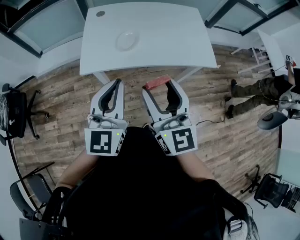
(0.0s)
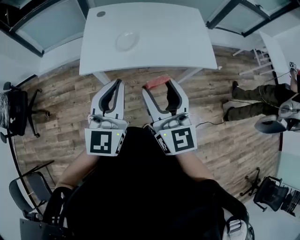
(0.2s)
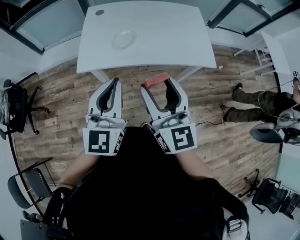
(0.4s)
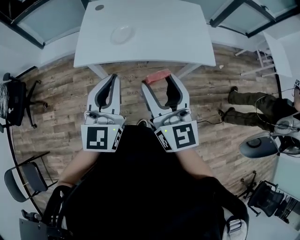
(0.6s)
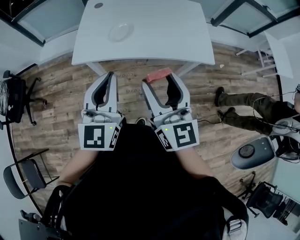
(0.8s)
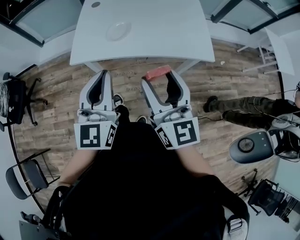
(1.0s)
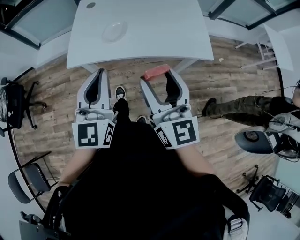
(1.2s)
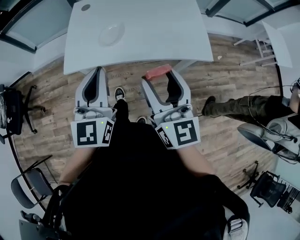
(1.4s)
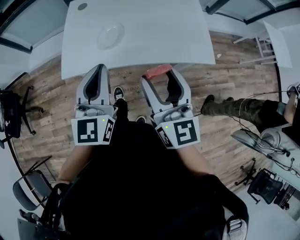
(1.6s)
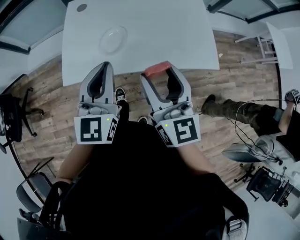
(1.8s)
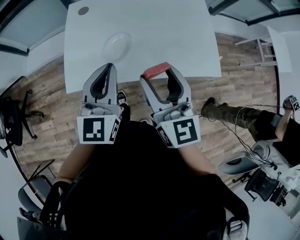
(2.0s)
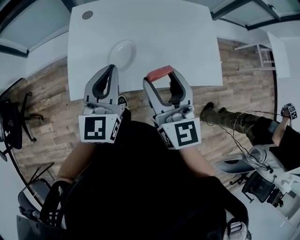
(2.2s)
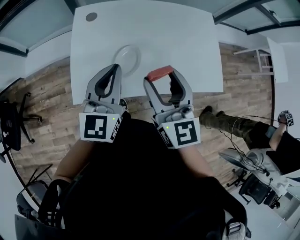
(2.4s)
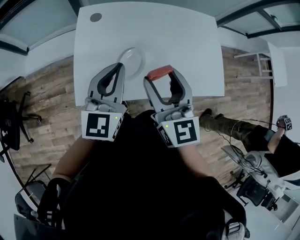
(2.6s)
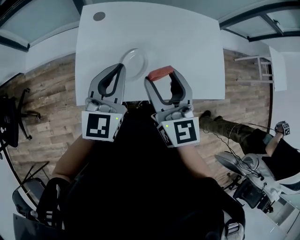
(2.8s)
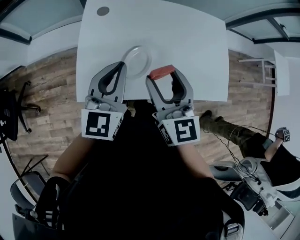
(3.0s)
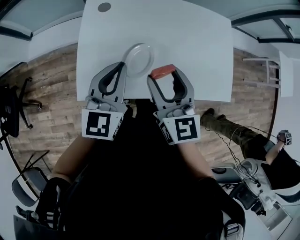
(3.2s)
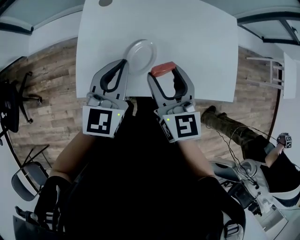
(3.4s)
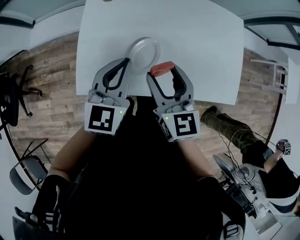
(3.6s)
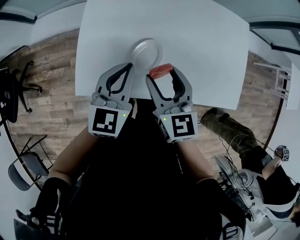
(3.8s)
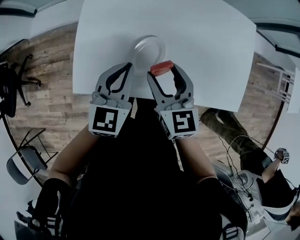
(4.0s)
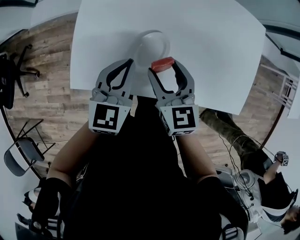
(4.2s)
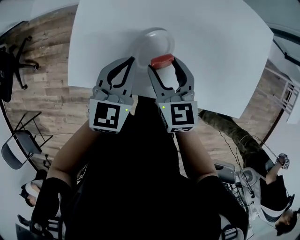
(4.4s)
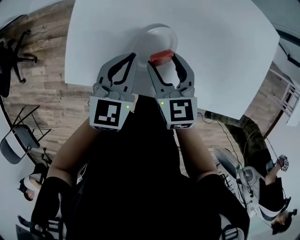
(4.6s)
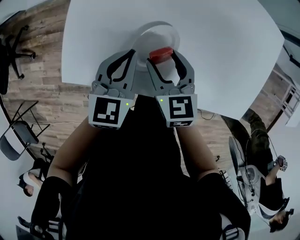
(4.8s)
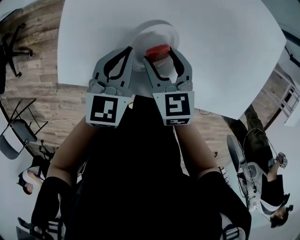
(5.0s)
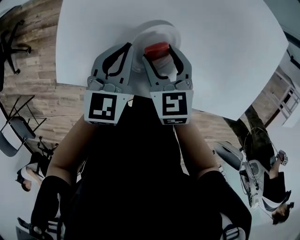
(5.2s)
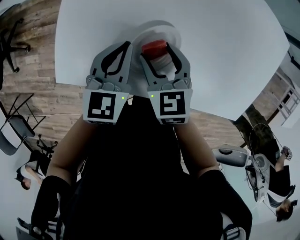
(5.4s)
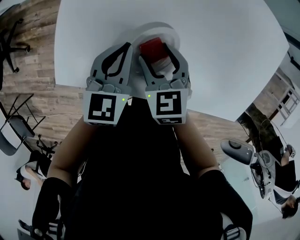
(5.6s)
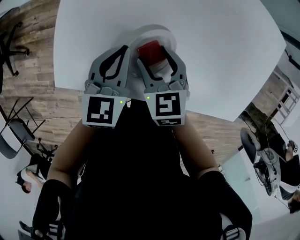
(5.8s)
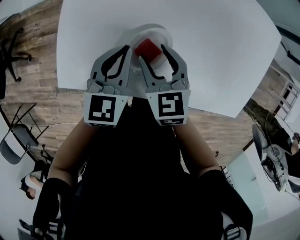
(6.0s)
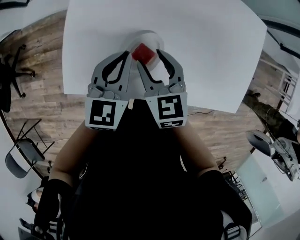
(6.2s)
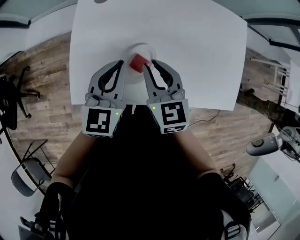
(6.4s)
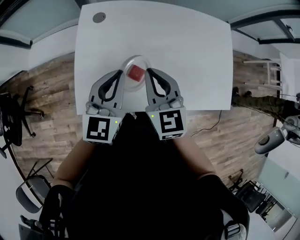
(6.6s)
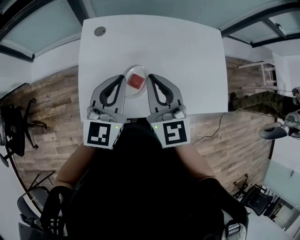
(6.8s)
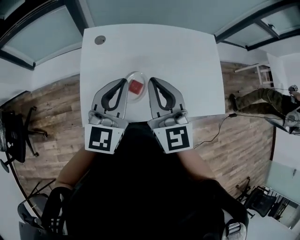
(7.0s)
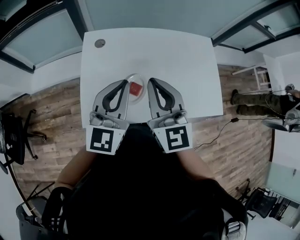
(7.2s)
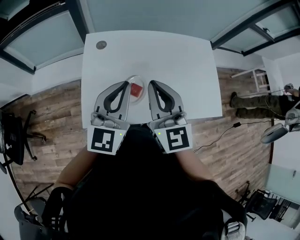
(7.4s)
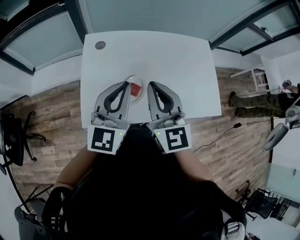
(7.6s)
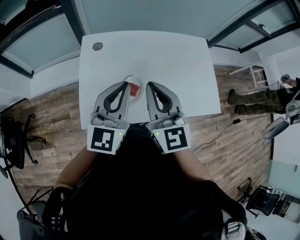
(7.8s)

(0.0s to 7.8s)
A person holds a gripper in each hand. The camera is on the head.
0.0s - 1.6s: The right gripper moves forward and to the right, about 10 cm, while the left gripper is displaced forward by roughly 10 cm.
1.6s - 3.2s: The left gripper moves forward, roughly 20 cm, while the right gripper goes some 20 cm forward and to the left.
3.2s - 4.6s: The grippers both shift downward by some 15 cm. The left gripper changes its angle by roughly 20 degrees; the right gripper swivels about 30 degrees.
4.6s - 6.2s: There are only small adjustments of the grippers.
6.2s - 7.8s: The two grippers go about 20 cm upward. The left gripper rotates some 30 degrees; the right gripper tips its fingers upward by some 30 degrees, and closes up.

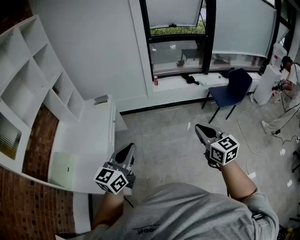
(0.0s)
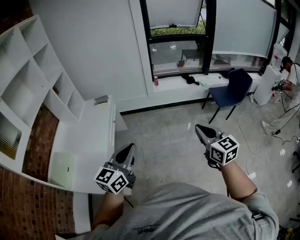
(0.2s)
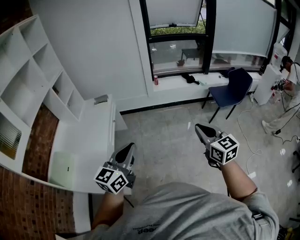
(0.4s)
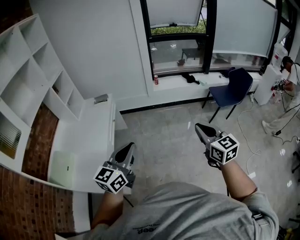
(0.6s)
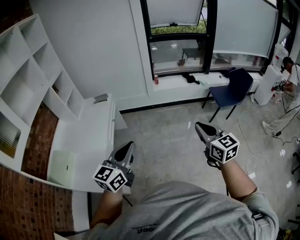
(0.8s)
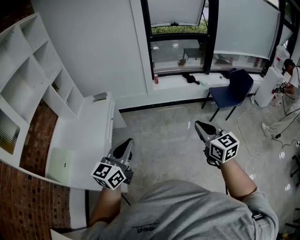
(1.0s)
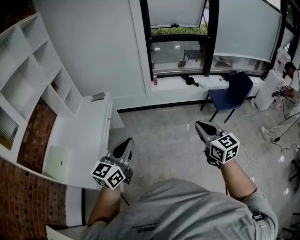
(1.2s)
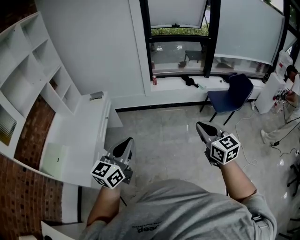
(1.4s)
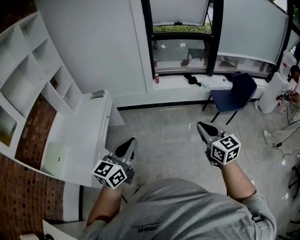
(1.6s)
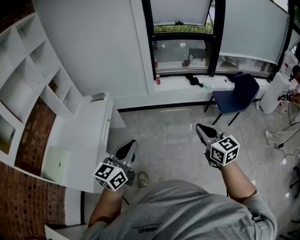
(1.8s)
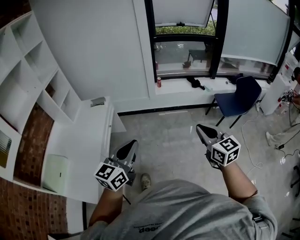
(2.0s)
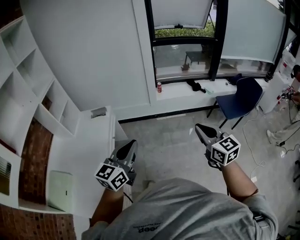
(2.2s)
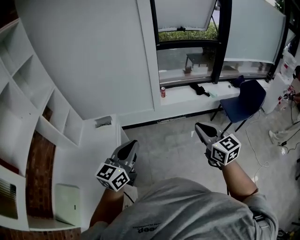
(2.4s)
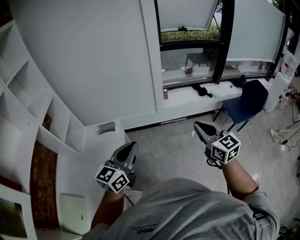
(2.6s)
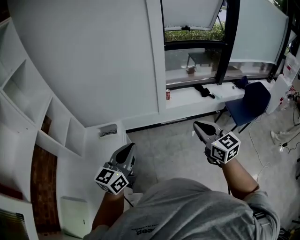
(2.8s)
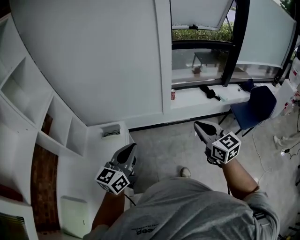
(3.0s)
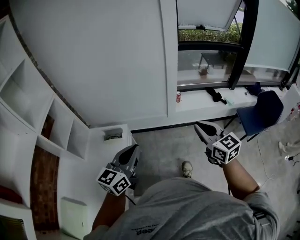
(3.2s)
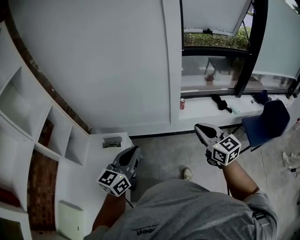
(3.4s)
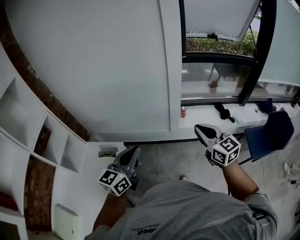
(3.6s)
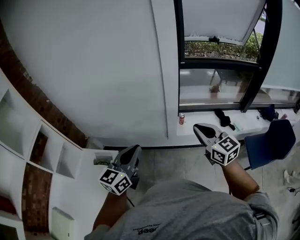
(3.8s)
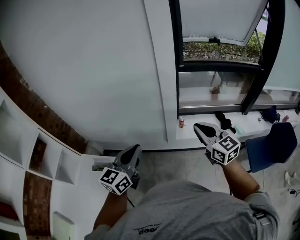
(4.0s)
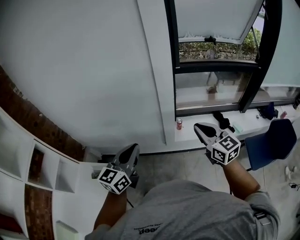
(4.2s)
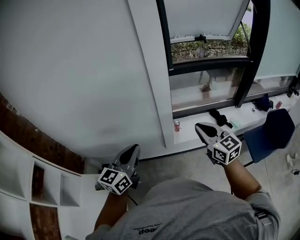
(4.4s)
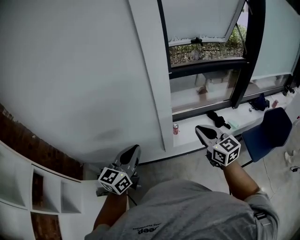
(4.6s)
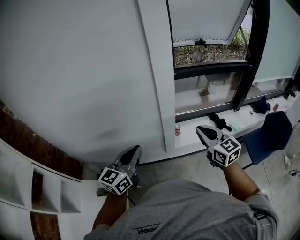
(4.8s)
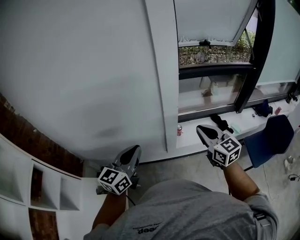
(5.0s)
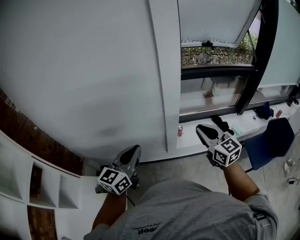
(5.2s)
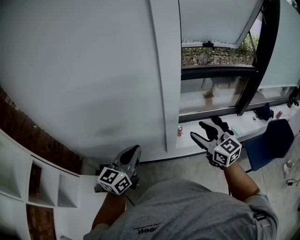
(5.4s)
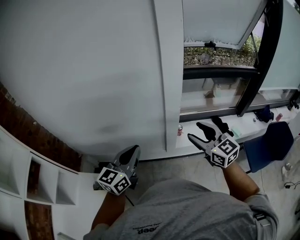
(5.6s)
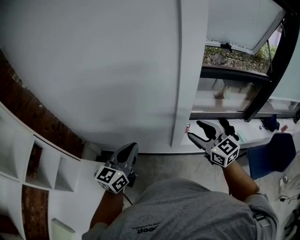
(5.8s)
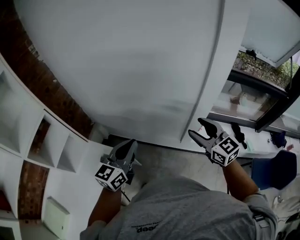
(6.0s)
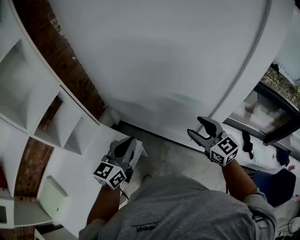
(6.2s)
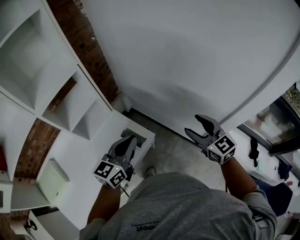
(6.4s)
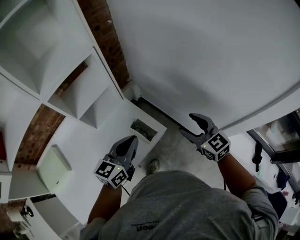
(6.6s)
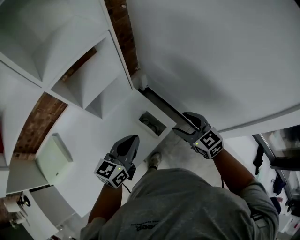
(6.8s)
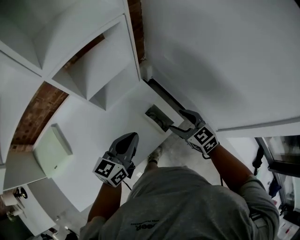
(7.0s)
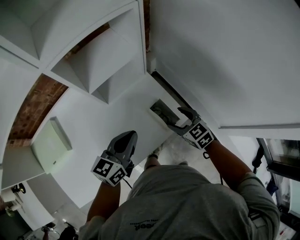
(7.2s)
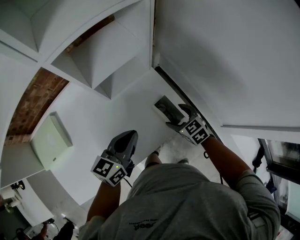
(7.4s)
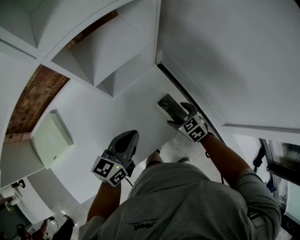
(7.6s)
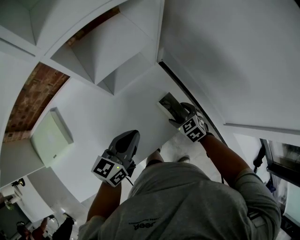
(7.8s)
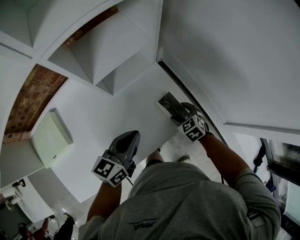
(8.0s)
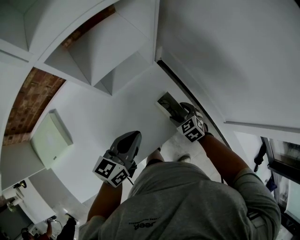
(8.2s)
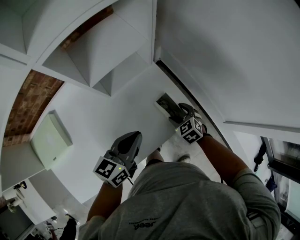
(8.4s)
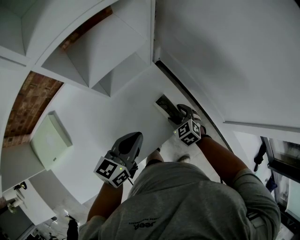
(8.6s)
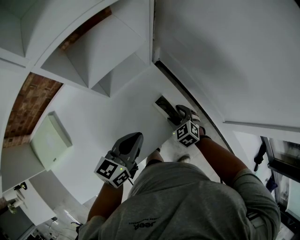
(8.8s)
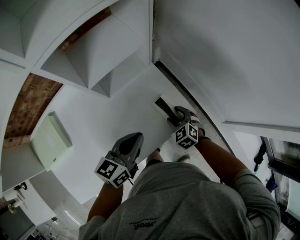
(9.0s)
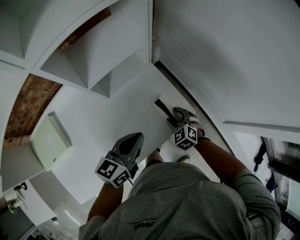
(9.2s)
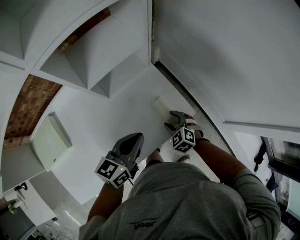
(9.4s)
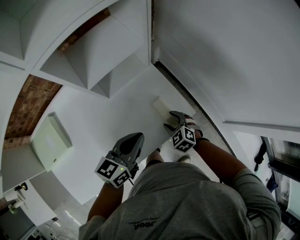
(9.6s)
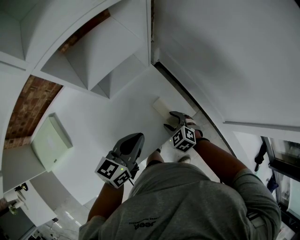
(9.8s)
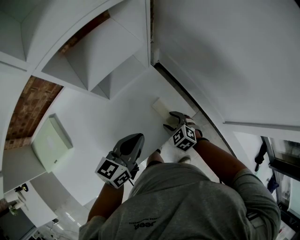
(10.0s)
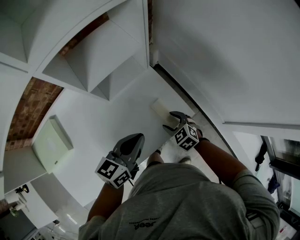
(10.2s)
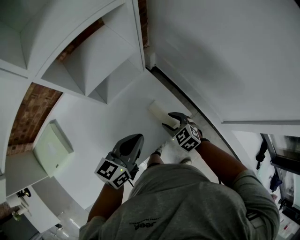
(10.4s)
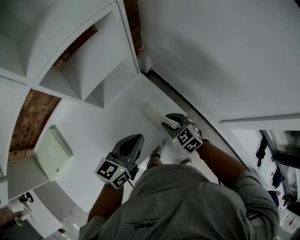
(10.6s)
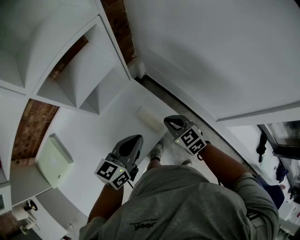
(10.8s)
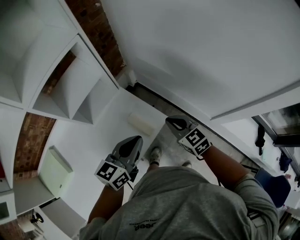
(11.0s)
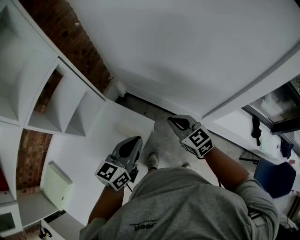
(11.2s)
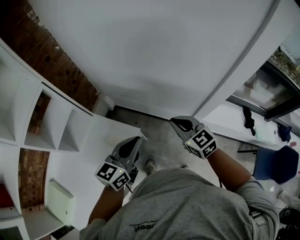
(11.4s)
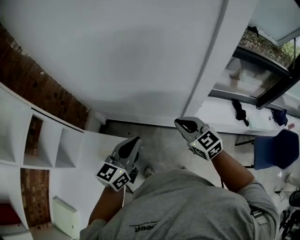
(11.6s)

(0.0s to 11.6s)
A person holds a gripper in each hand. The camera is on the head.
0.0s - 1.4s: Both grippers travel together to the right, approximately 10 cm.
1.4s - 2.8s: The two grippers travel together, forward and to the left, roughly 50 cm.
2.8s - 4.4s: The two grippers travel together, forward, about 50 cm.
4.4s - 5.8s: The two grippers go approximately 10 cm to the left. The right gripper opens its fingers.
5.8s - 7.2s: The two grippers travel together, approximately 50 cm. The left gripper swivels approximately 50 degrees. Meanwhile the right gripper rotates approximately 60 degrees.
7.2s - 8.8s: The right gripper moves downward, about 10 cm, and rotates roughly 20 degrees.
8.8s - 10.2s: The grippers make only small movements.
10.2s - 11.6s: The left gripper shifts by roughly 35 cm, and turns by roughly 40 degrees. The right gripper moves approximately 50 cm, swivels roughly 60 degrees, and closes up.

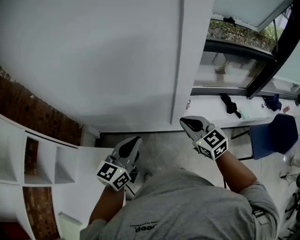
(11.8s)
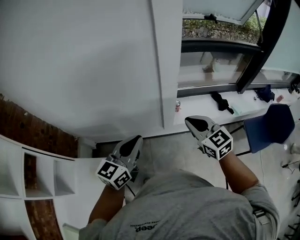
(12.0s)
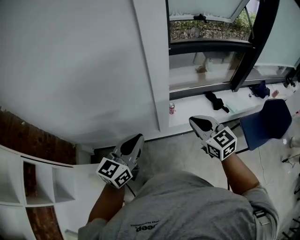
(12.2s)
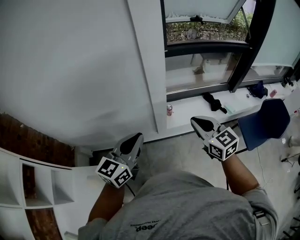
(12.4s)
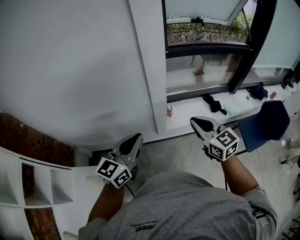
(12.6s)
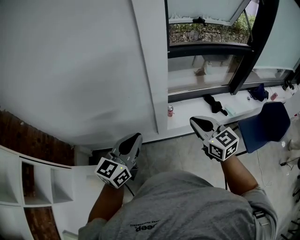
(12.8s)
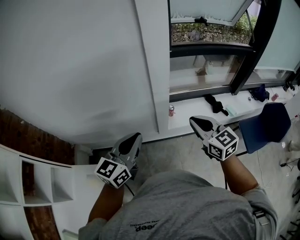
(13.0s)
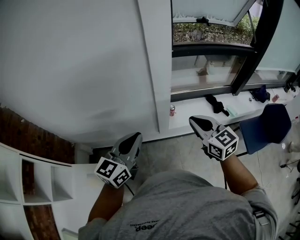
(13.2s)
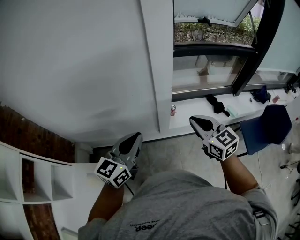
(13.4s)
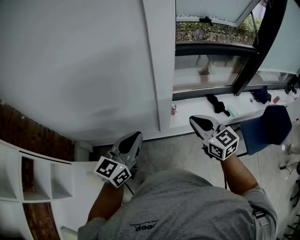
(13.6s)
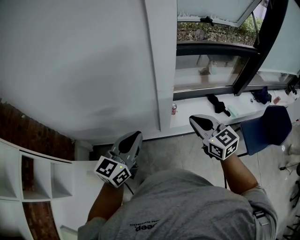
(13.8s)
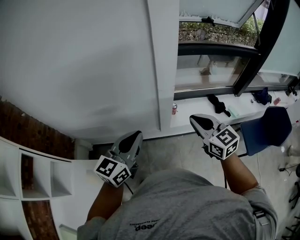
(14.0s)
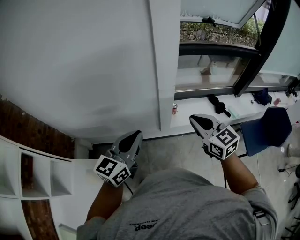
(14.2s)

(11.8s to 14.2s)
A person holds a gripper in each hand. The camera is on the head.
11.8s - 13.0s: The grippers both shift to the right by roughly 10 cm.
13.0s - 14.2s: There are only small adjustments of the grippers.

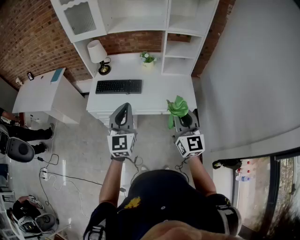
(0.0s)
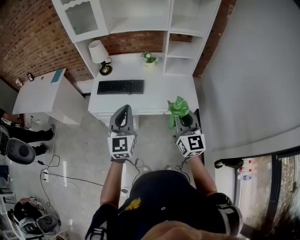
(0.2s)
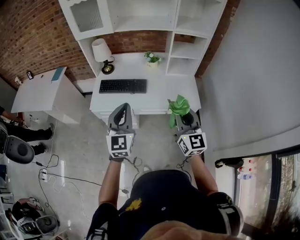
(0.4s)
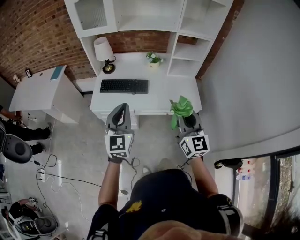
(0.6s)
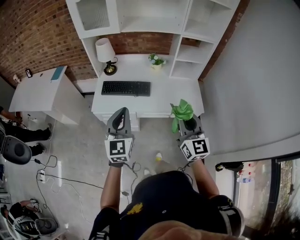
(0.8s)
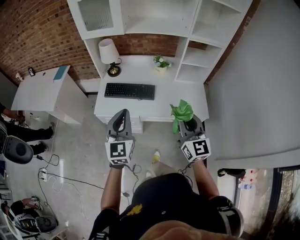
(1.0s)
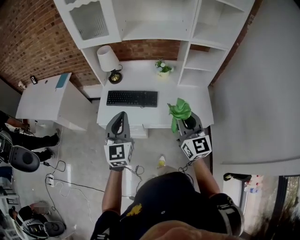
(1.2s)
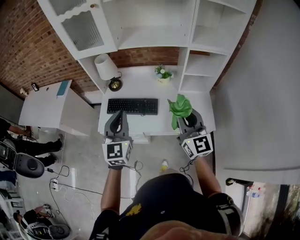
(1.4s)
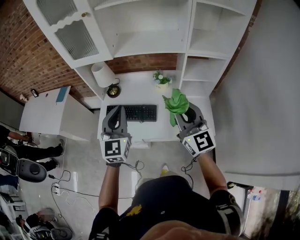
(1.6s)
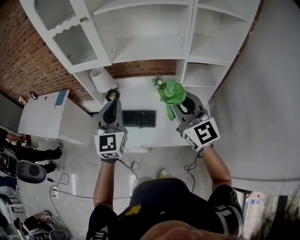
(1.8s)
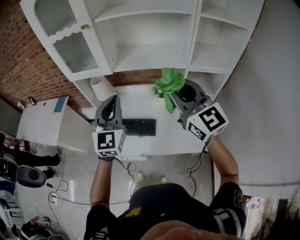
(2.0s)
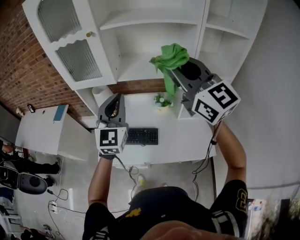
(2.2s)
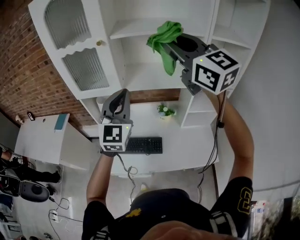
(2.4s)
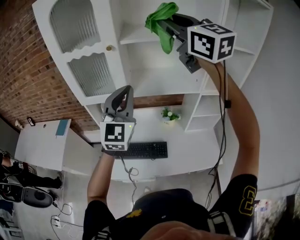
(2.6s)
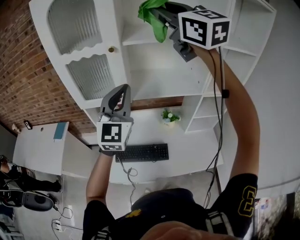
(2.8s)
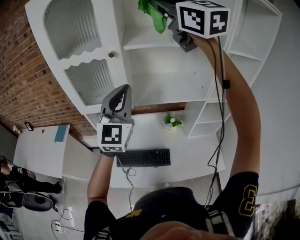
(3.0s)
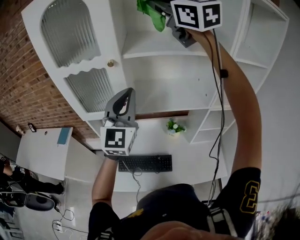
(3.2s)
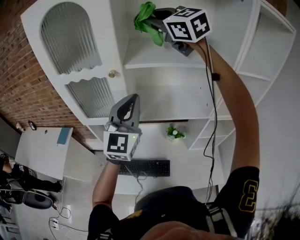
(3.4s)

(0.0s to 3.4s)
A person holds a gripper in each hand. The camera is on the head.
0.0s - 1.6s: Both grippers travel together forward, about 25 cm.
1.6s - 3.4s: The left gripper goes approximately 35 cm forward and upward, and turns by roughly 20 degrees; the right gripper is displaced forward and upward by some 60 cm, and rotates some 30 degrees.
